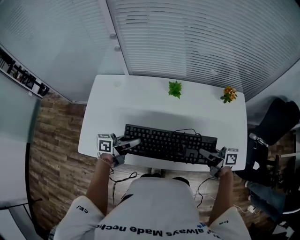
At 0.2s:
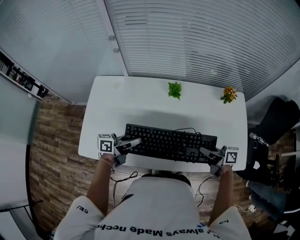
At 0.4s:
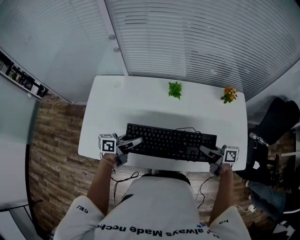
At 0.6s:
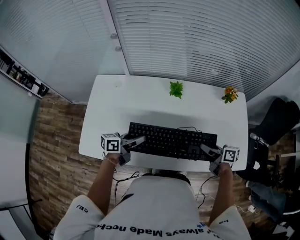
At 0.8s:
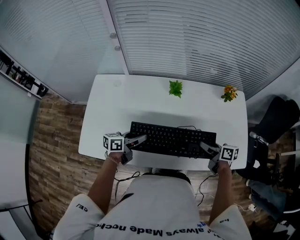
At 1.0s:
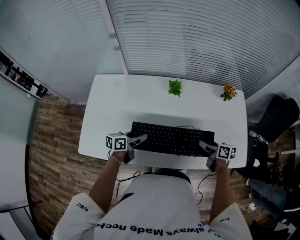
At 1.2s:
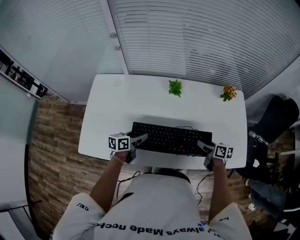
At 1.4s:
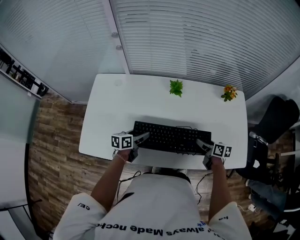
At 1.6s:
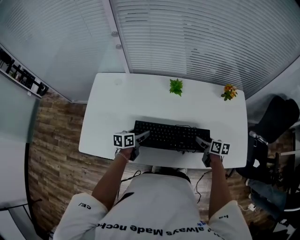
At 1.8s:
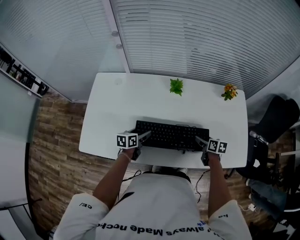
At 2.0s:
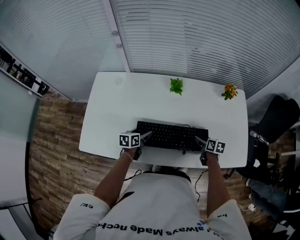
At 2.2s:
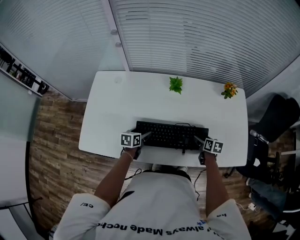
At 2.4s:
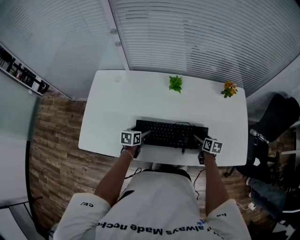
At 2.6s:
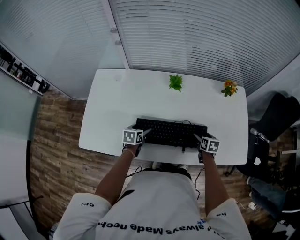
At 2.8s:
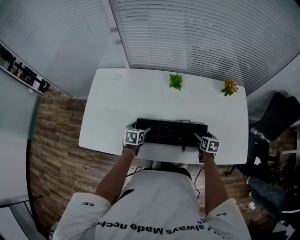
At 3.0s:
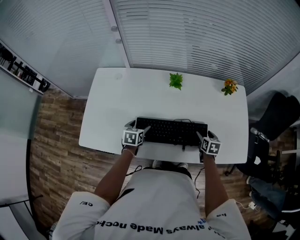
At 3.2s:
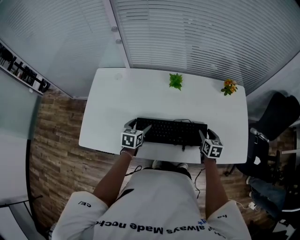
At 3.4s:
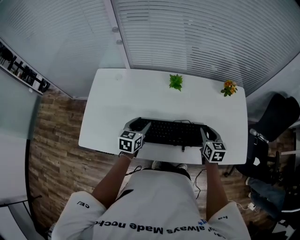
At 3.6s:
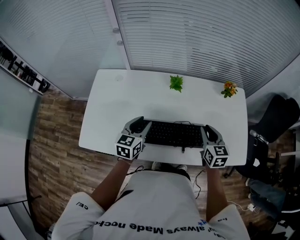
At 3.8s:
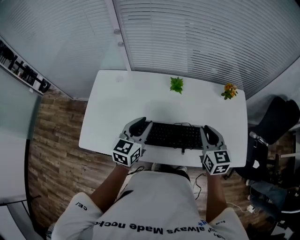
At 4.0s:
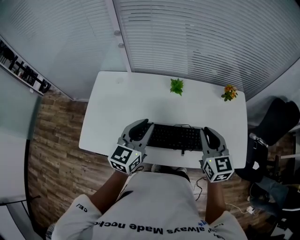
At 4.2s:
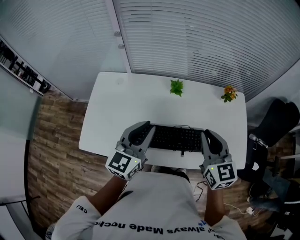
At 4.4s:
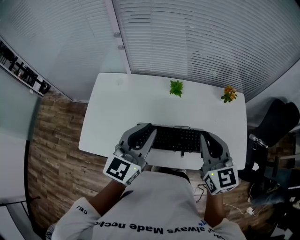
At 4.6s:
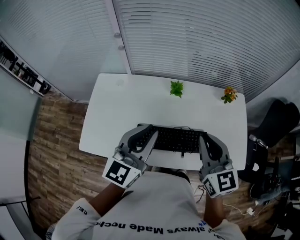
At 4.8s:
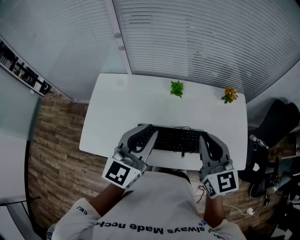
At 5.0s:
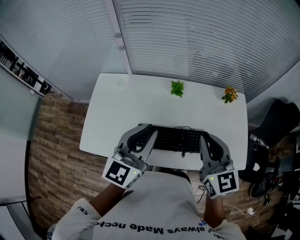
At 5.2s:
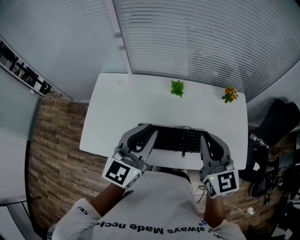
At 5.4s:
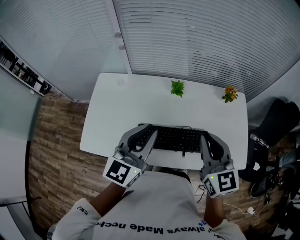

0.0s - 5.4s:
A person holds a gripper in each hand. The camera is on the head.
0.0s - 1.4s: Both grippers move downward, about 10 cm. The left gripper changes its angle by approximately 30 degrees, and opens up, while the right gripper changes its angle by roughly 30 degrees, and opens up.
1.4s - 2.8s: Both grippers move downward, some 5 cm. The right gripper swivels some 30 degrees; the left gripper changes its angle by approximately 30 degrees.
2.8s - 4.0s: Both grippers move upward, some 30 cm. The right gripper points its fingers about 30 degrees further upward, and closes; the left gripper tilts its fingers approximately 40 degrees upward, and closes.
4.0s - 5.4s: The grippers both shift upward by about 10 cm.

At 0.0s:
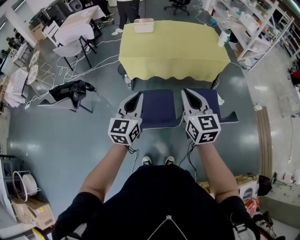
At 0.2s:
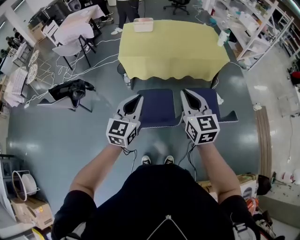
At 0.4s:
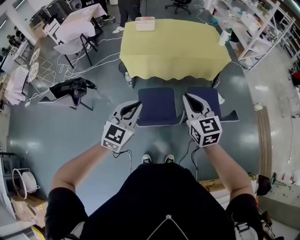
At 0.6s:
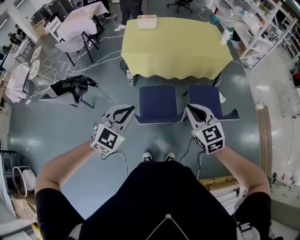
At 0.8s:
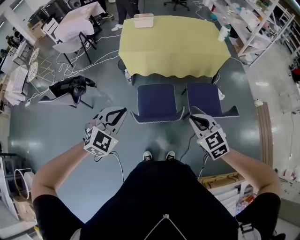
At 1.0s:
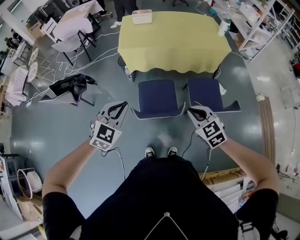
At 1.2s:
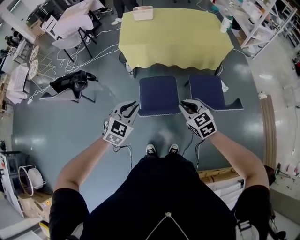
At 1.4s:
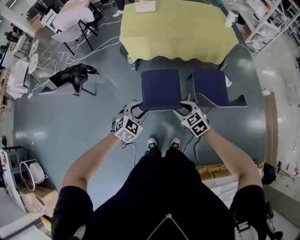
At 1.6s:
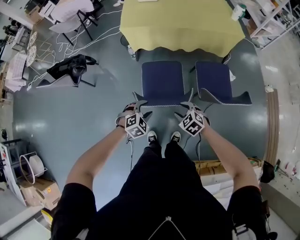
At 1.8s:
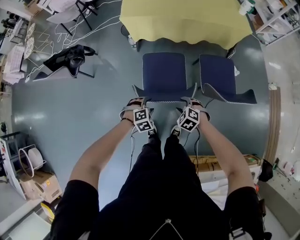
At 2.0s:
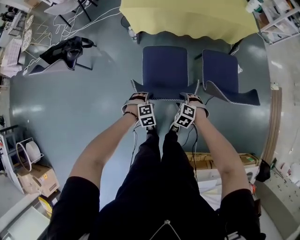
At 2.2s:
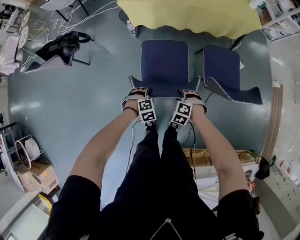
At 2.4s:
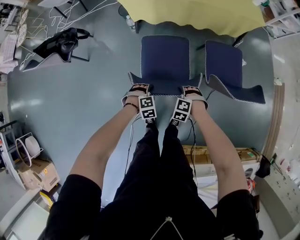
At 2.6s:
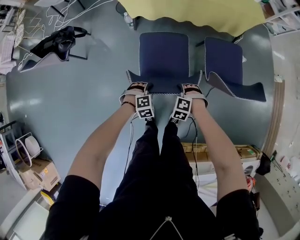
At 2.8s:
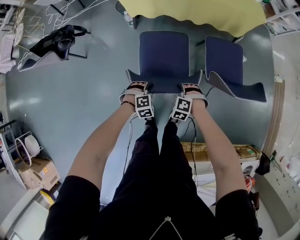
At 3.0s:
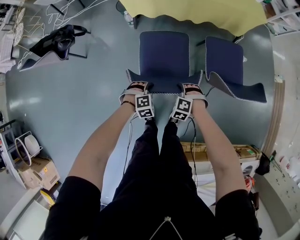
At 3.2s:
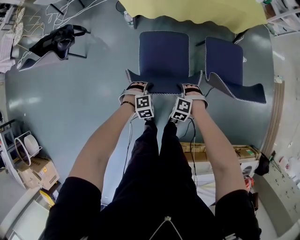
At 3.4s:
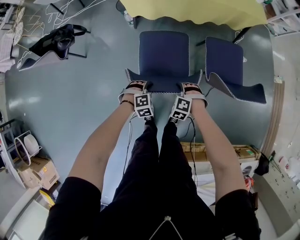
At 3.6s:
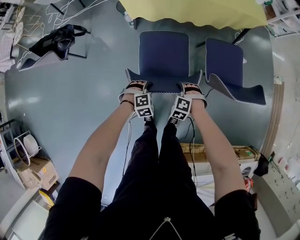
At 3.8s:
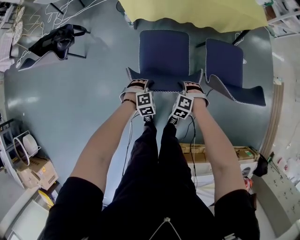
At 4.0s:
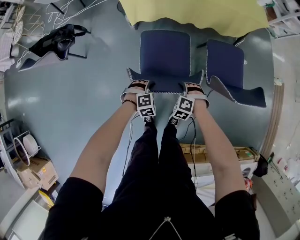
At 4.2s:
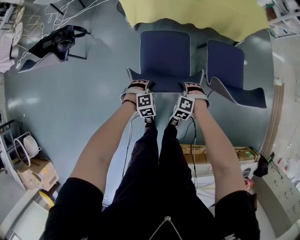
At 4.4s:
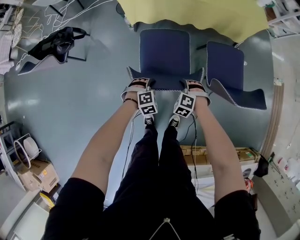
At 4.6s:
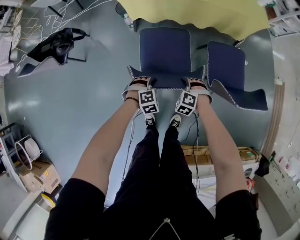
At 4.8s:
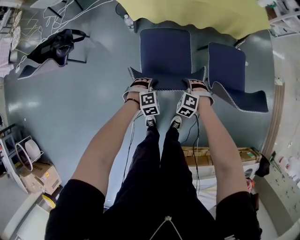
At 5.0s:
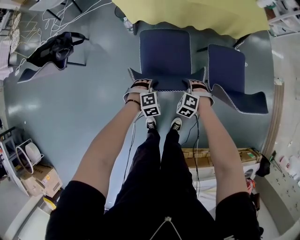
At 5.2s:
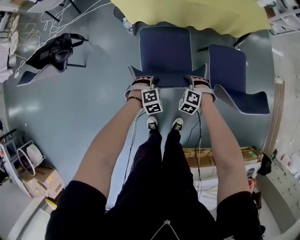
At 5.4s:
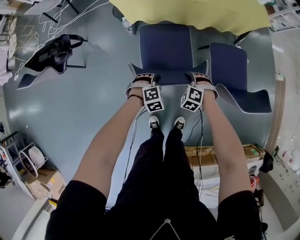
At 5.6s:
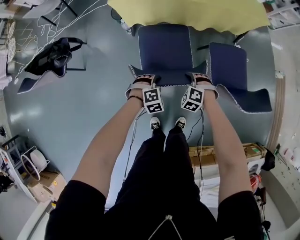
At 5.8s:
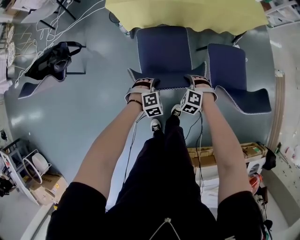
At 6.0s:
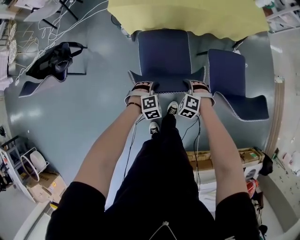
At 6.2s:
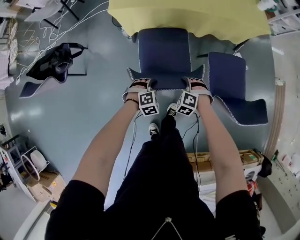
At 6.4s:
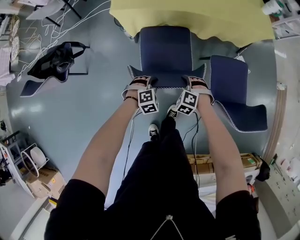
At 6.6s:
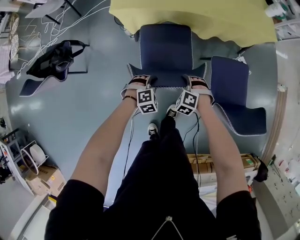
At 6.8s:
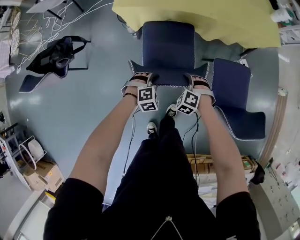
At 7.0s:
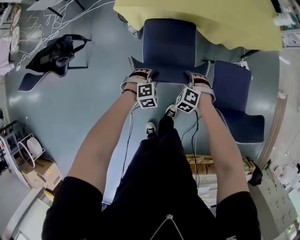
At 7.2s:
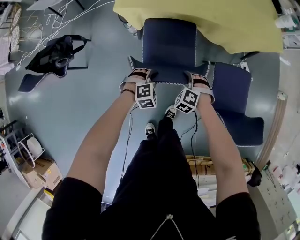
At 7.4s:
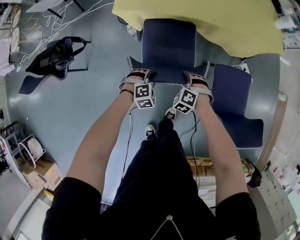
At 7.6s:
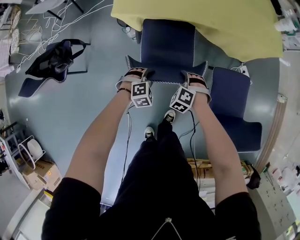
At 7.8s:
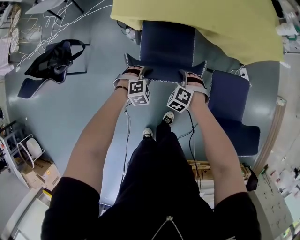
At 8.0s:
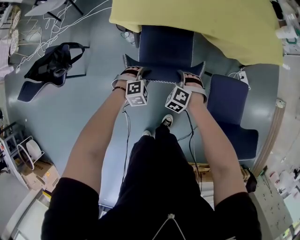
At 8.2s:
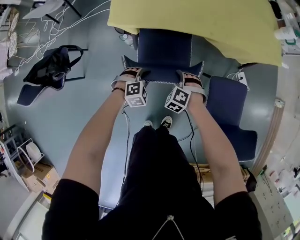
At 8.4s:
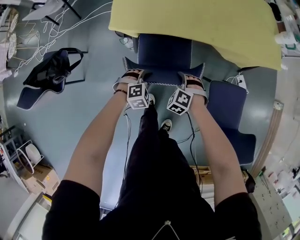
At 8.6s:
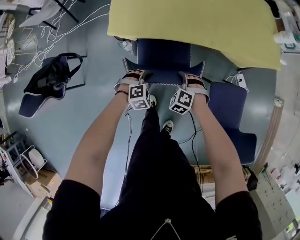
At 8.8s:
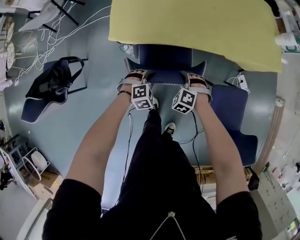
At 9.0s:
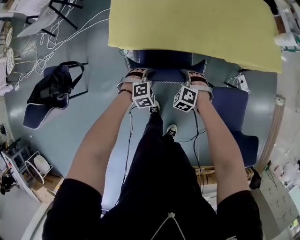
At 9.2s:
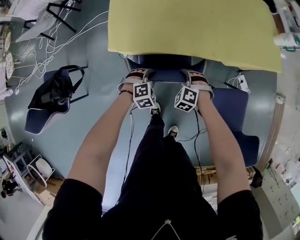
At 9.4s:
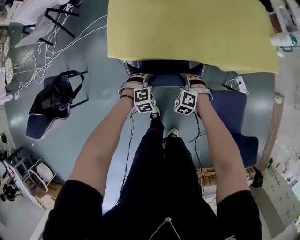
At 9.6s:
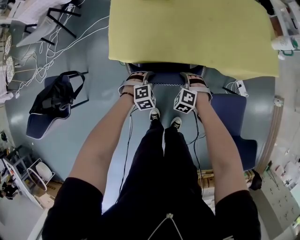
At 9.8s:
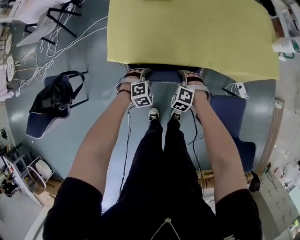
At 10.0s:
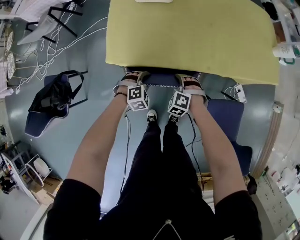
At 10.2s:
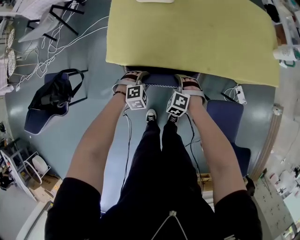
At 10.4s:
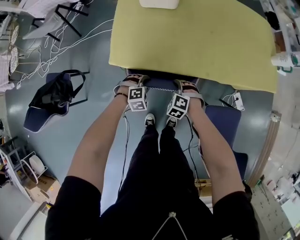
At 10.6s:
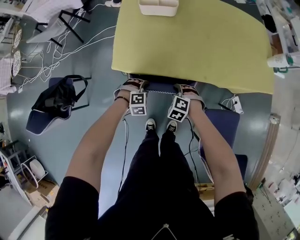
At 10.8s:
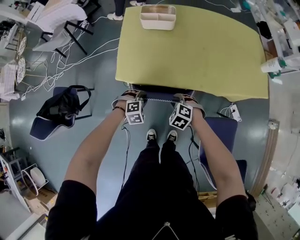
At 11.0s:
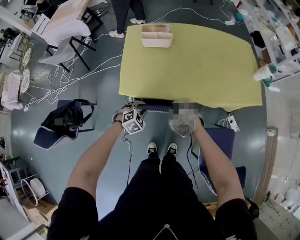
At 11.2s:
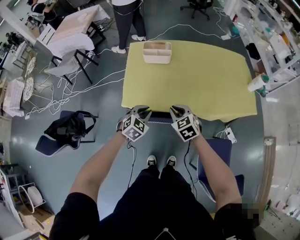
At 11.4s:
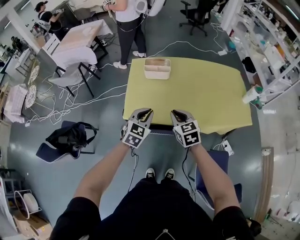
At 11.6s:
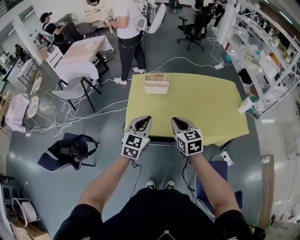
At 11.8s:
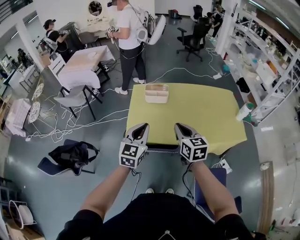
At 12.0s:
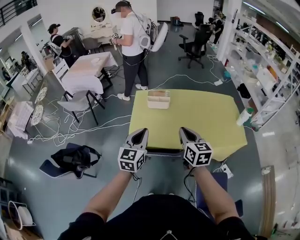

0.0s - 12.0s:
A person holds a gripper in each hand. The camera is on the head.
0.0s - 1.6s: Both grippers move downward, about 35 cm. The left gripper angles its fingers downward, by roughly 50 degrees, and opens. The right gripper points its fingers roughly 50 degrees further downward, and opens.
1.6s - 3.0s: The grippers both shift downward by roughly 20 cm. The right gripper swivels some 40 degrees; the left gripper closes up.
3.0s - 4.4s: Both grippers travel together forward, roughly 5 cm.
4.4s - 6.0s: The grippers both shift forward by about 10 cm.
6.0s - 7.6s: Both grippers move forward, approximately 20 cm.
7.6s - 9.0s: Both grippers travel together forward, some 20 cm.
9.0s - 10.4s: The two grippers go roughly 5 cm forward.
10.4s - 12.0s: The grippers both shift upward by roughly 50 cm. The right gripper tilts its fingers some 50 degrees upward, and closes, while the left gripper tilts its fingers some 60 degrees upward, and closes its fingers.

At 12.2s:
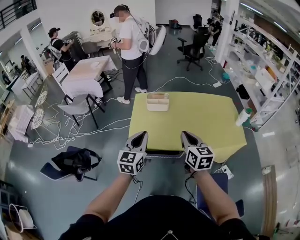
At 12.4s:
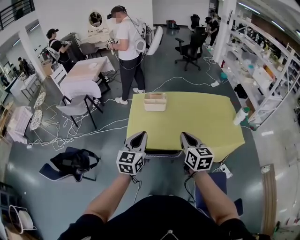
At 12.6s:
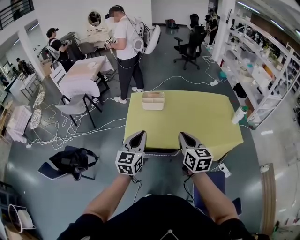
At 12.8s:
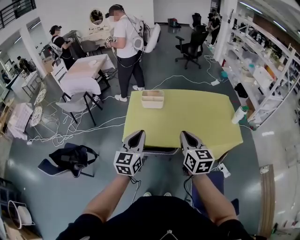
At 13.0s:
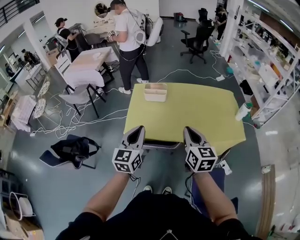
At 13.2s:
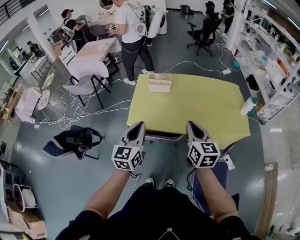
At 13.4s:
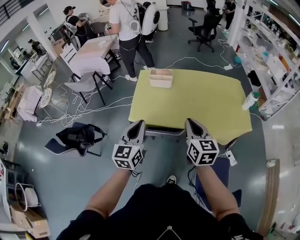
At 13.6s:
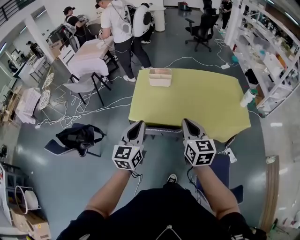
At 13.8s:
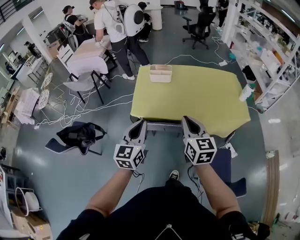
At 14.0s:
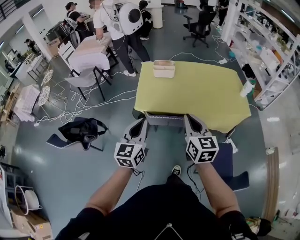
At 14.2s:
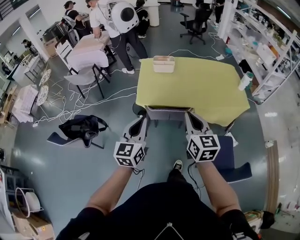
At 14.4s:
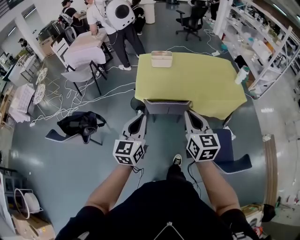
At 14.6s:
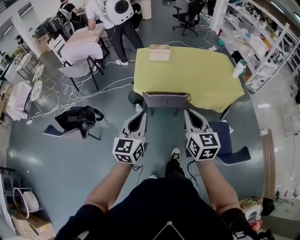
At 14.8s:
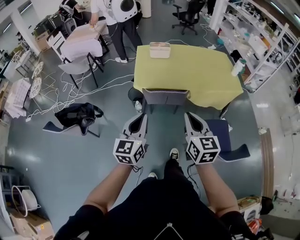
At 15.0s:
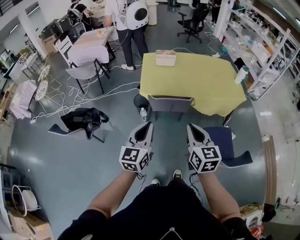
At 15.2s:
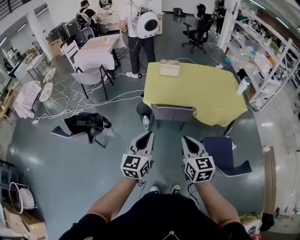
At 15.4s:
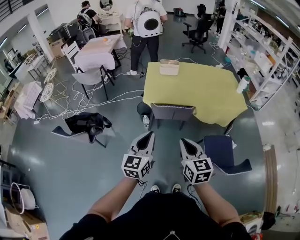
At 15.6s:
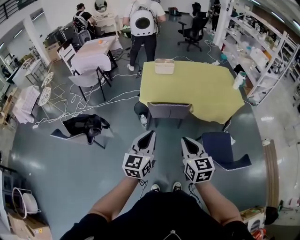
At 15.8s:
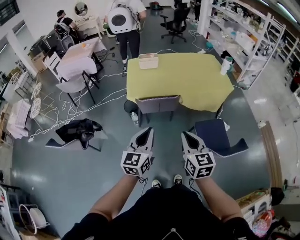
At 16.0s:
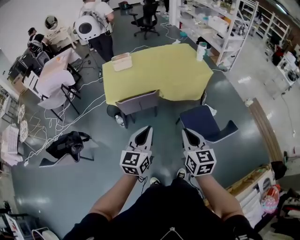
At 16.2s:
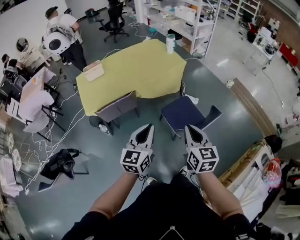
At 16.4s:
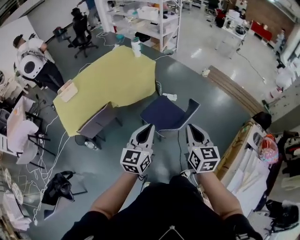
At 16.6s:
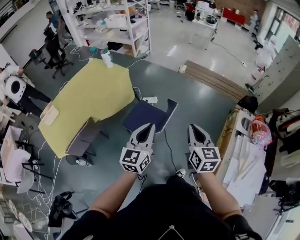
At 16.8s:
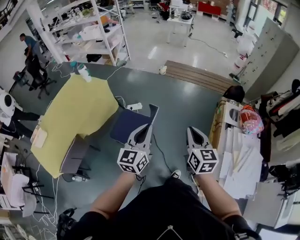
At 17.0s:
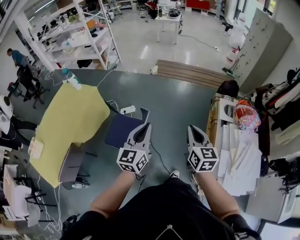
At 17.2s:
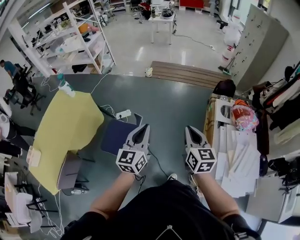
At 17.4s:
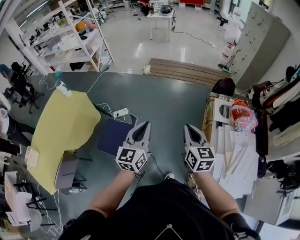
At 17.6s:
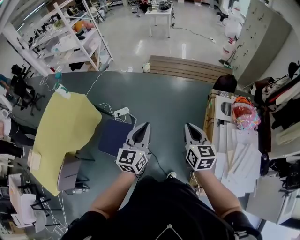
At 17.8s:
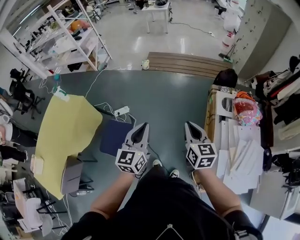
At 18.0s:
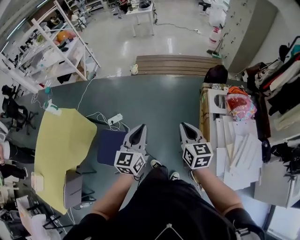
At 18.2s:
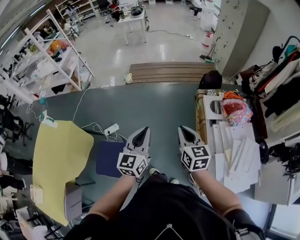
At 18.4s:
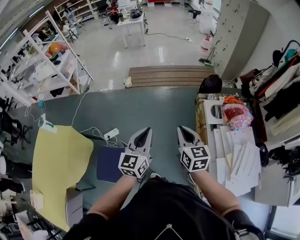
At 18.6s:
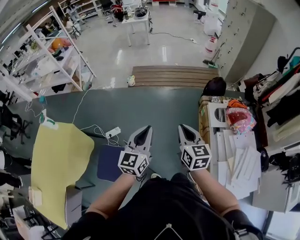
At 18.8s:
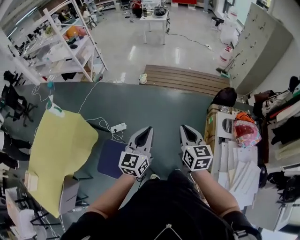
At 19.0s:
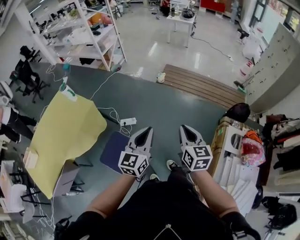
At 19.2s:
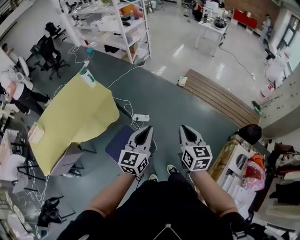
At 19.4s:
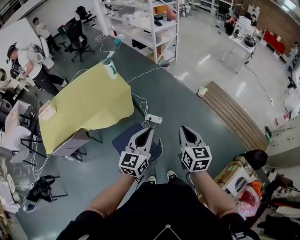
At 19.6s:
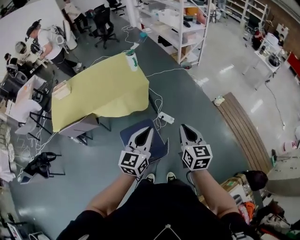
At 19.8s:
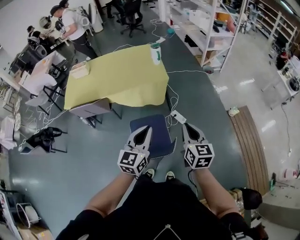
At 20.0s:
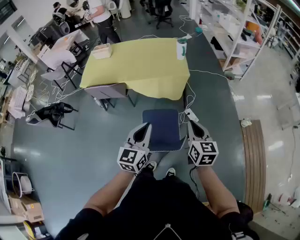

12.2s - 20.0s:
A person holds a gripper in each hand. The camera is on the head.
12.2s - 13.8s: Both grippers travel together backward, some 15 cm.
13.8s - 15.4s: The two grippers go approximately 25 cm backward.
15.4s - 16.8s: The two grippers travel together, about 60 cm. The right gripper turns by approximately 80 degrees, while the left gripper turns by some 70 degrees.
16.8s - 18.4s: Both grippers travel together forward and to the right, roughly 35 cm.
18.4s - 20.0s: The right gripper moves some 40 cm, and turns by about 80 degrees; the left gripper shifts by approximately 35 cm, and swivels some 90 degrees.
